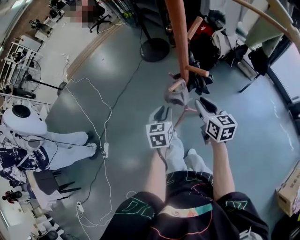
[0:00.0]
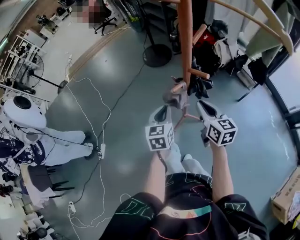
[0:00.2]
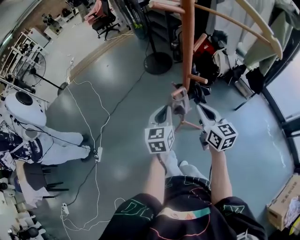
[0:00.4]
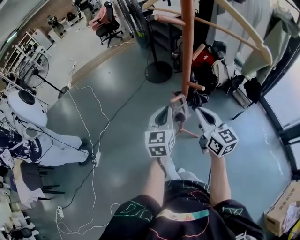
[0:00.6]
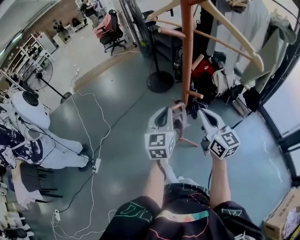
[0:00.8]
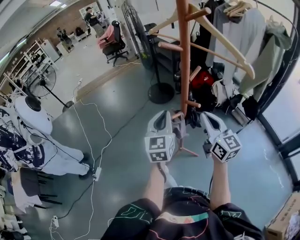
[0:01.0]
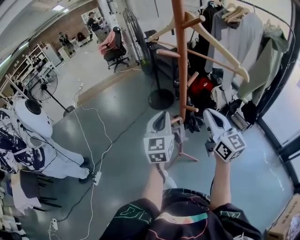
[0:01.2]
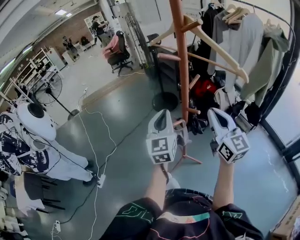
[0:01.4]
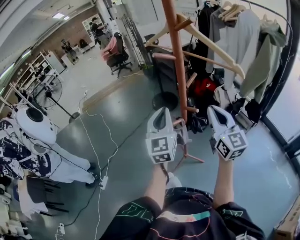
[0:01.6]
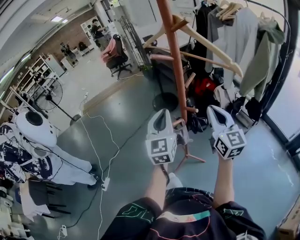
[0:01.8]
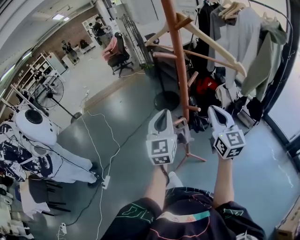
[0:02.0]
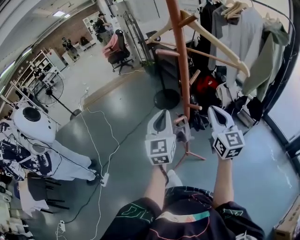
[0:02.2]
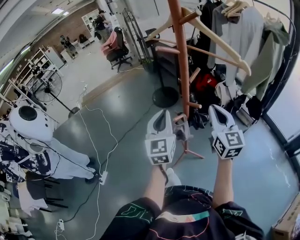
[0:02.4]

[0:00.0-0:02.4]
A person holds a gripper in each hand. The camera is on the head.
0.0 to 1.2 s: Both grippers travel together upward, some 25 cm. The left gripper tilts its fingers about 30 degrees upward, and closes, while the right gripper tilts its fingers some 30 degrees upward, and closes its fingers.
1.2 to 2.4 s: The grippers make only small movements.

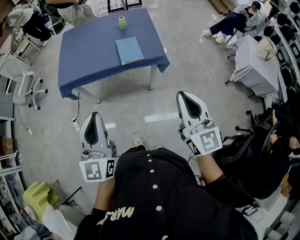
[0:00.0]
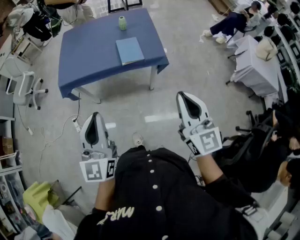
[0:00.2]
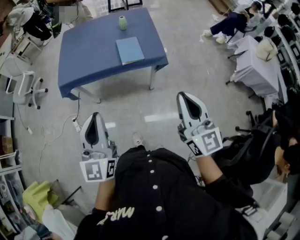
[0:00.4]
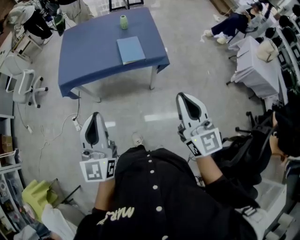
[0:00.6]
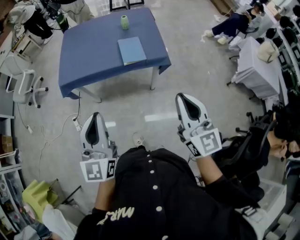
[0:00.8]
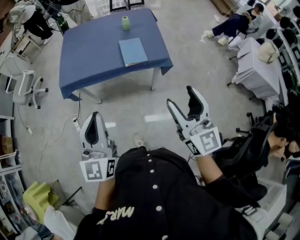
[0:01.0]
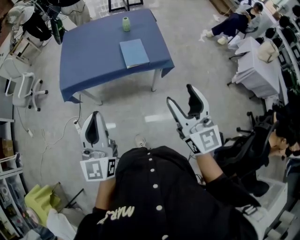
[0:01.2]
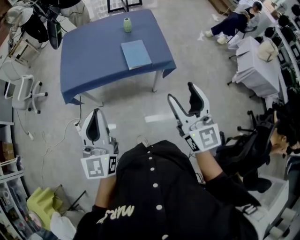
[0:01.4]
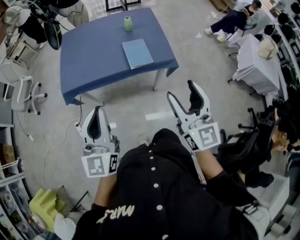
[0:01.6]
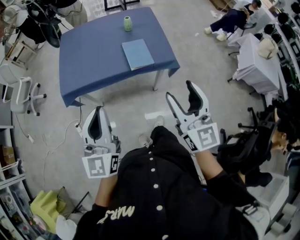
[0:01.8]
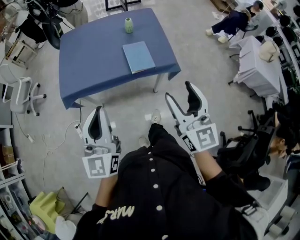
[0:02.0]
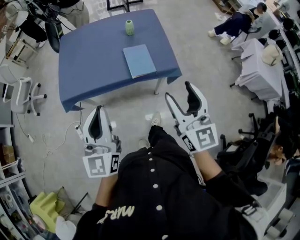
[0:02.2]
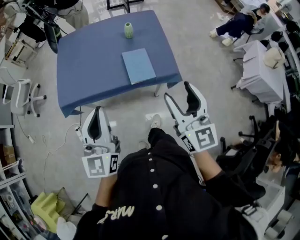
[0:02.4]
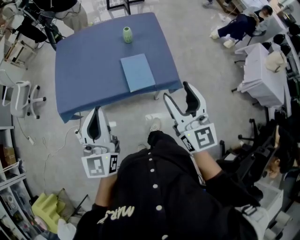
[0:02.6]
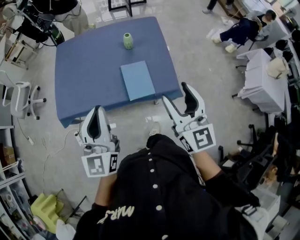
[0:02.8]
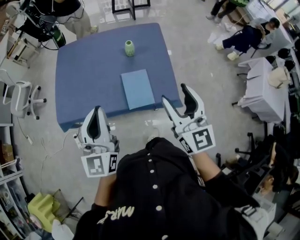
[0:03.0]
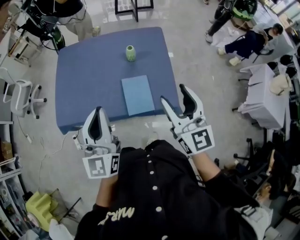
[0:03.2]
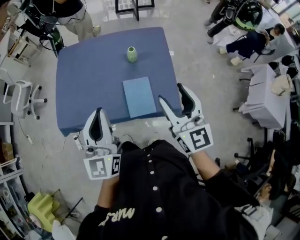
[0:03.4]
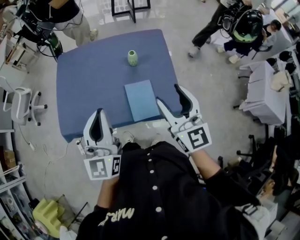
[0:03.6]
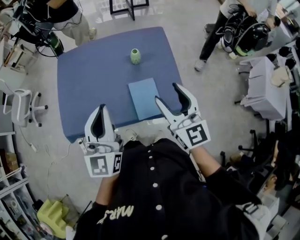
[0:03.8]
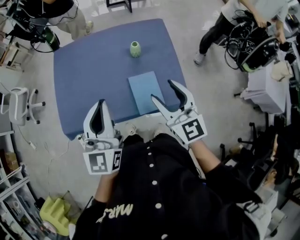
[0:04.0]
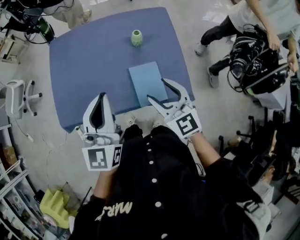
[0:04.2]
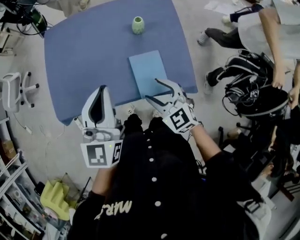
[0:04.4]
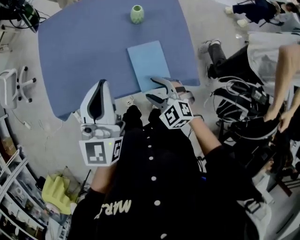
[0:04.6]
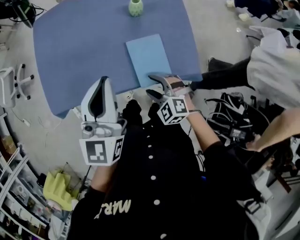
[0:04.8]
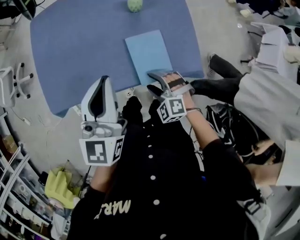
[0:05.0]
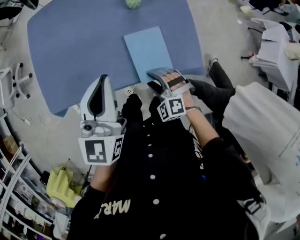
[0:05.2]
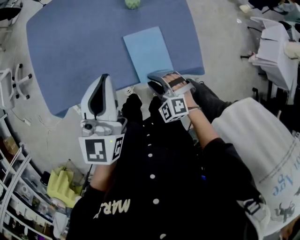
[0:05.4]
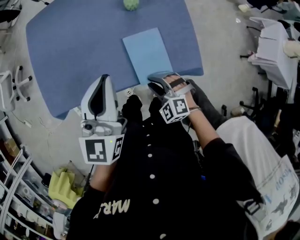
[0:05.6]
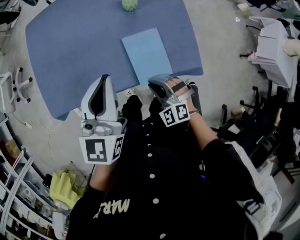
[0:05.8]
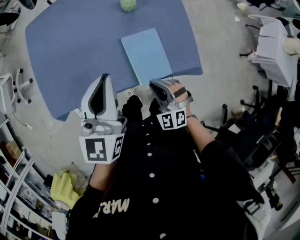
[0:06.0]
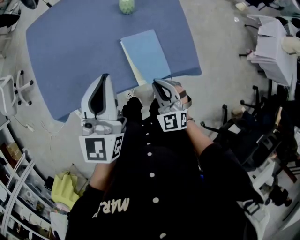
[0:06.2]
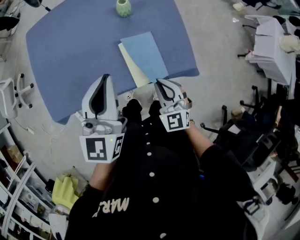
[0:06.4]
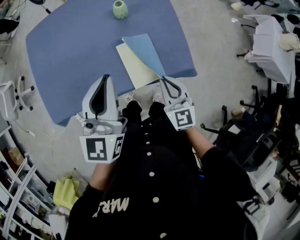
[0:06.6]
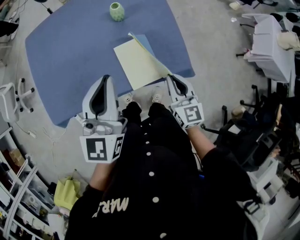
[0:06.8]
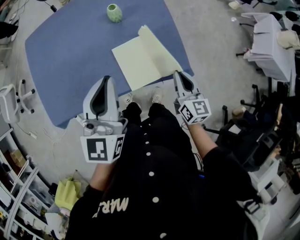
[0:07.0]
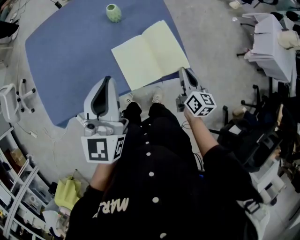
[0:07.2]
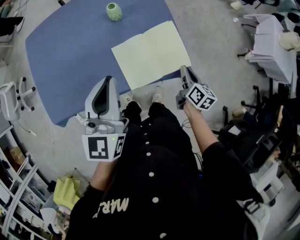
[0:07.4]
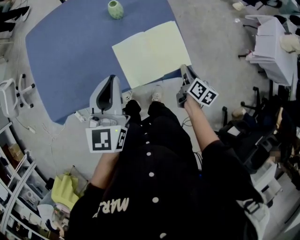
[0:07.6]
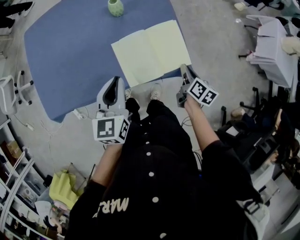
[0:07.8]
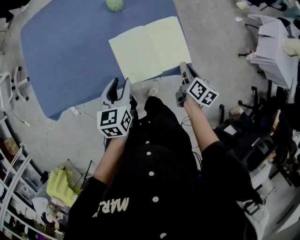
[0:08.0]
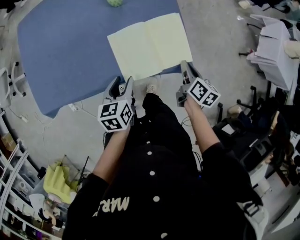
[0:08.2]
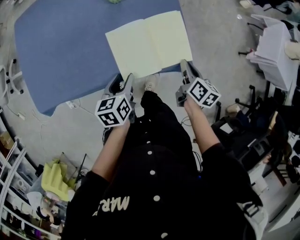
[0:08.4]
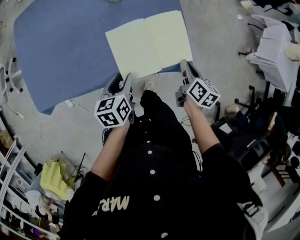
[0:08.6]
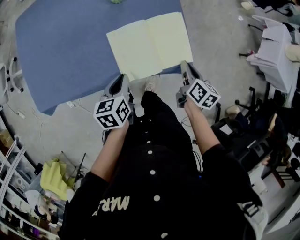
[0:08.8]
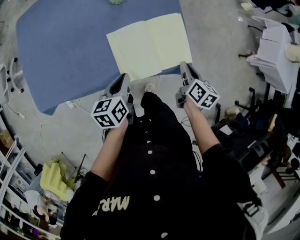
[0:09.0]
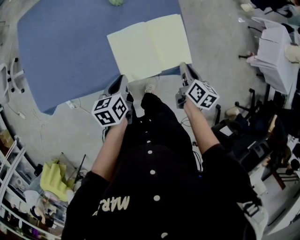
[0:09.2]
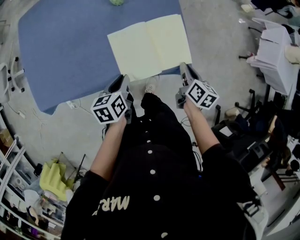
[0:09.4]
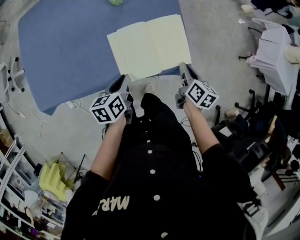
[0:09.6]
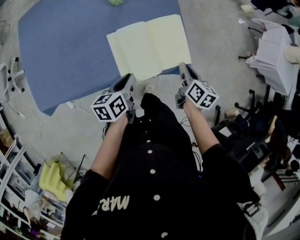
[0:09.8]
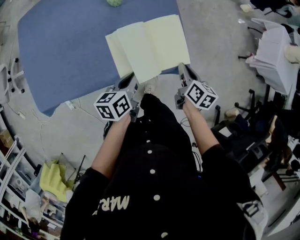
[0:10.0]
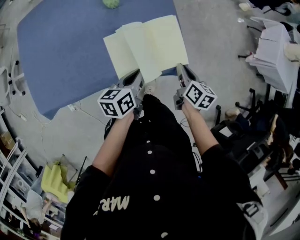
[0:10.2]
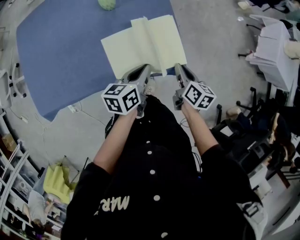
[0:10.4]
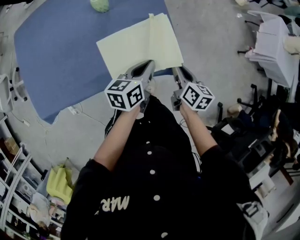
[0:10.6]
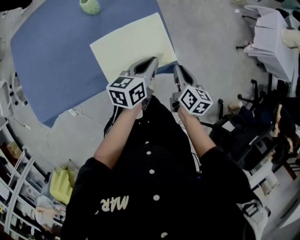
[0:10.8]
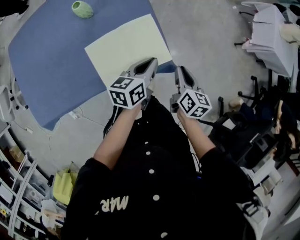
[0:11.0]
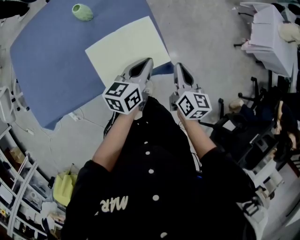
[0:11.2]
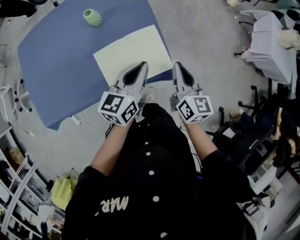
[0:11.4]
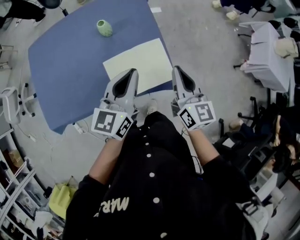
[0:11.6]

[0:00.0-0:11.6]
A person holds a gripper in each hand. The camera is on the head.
0.0 to 1.4 s: Both grippers move forward and to the left, about 10 cm. The right gripper opens its fingers.
1.4 to 2.8 s: The two grippers go approximately 30 cm forward.
2.8 to 4.4 s: The right gripper heads downward, forward and to the left, covering about 30 cm, and tips its fingers downward by approximately 30 degrees. The left gripper is displaced forward by roughly 20 cm.
4.4 to 5.8 s: The left gripper shifts roughly 10 cm downward. The right gripper shifts some 15 cm downward, rotates approximately 30 degrees, and closes its fingers.
5.8 to 7.2 s: The left gripper travels to the right by roughly 5 cm, while the right gripper is displaced to the right by about 25 cm, and twists approximately 80 degrees clockwise, seen from behind.
7.2 to 8.8 s: The right gripper is displaced downward by roughly 5 cm, while the left gripper heads downward, covering about 25 cm, angles its fingers downward, by roughly 40 degrees, and opens, then closes again.
8.8 to 10.2 s: The left gripper goes some 10 cm to the right, and turns by some 20 degrees.
10.2 to 11.6 s: The two grippers go about 20 cm upward. The right gripper changes its angle by about 40 degrees, while the left gripper rotates approximately 40 degrees.

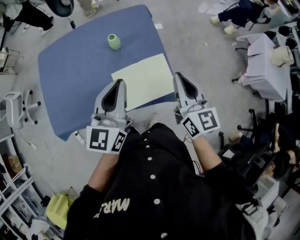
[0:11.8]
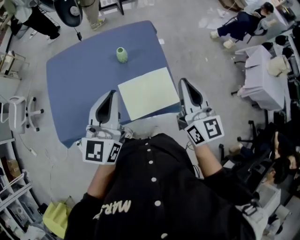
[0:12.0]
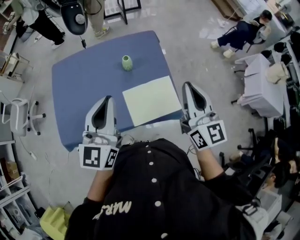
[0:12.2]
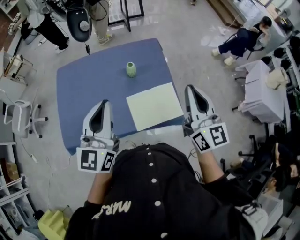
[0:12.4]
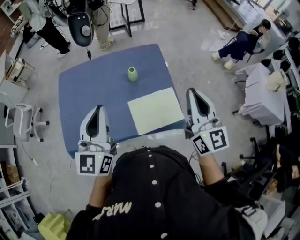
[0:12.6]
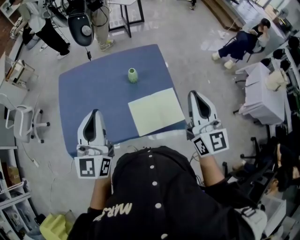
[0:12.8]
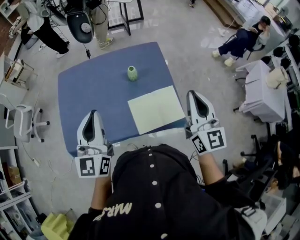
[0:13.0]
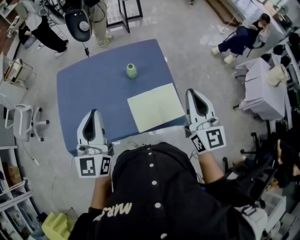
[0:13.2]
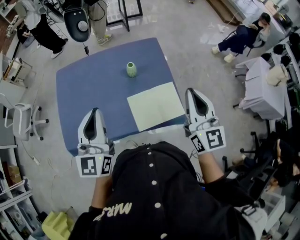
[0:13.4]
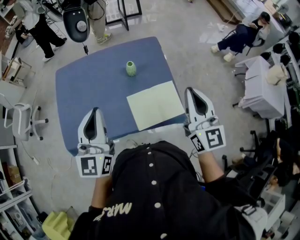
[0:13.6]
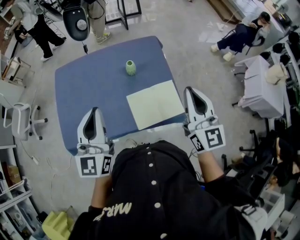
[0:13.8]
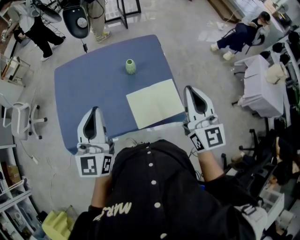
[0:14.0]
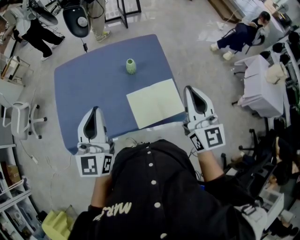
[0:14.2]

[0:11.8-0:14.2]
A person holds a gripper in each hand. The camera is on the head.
11.8 to 13.0 s: The left gripper heads to the left and upward, covering approximately 20 cm. The right gripper heads upward, covering approximately 10 cm.
13.0 to 14.2 s: The grippers stay close to where they were, moving slightly.

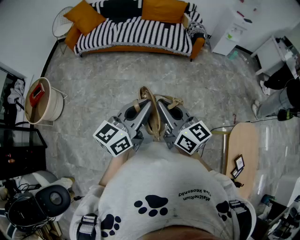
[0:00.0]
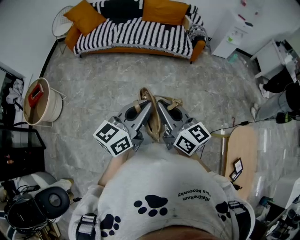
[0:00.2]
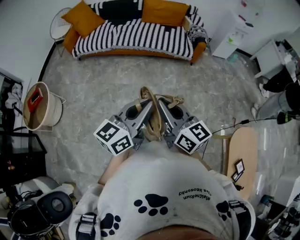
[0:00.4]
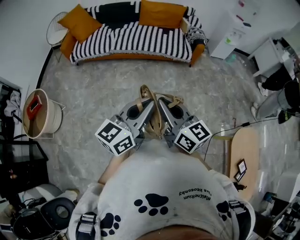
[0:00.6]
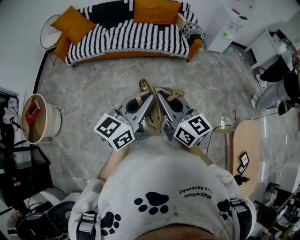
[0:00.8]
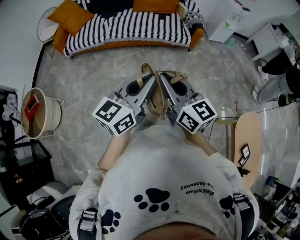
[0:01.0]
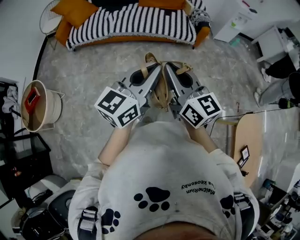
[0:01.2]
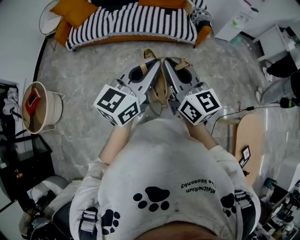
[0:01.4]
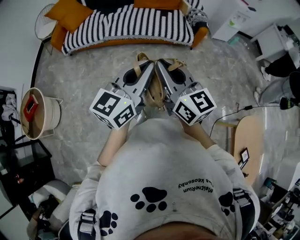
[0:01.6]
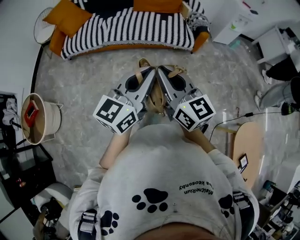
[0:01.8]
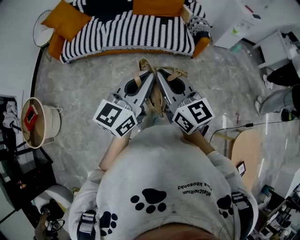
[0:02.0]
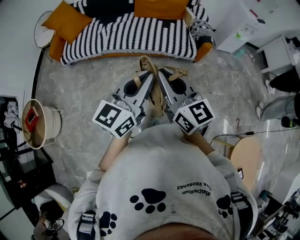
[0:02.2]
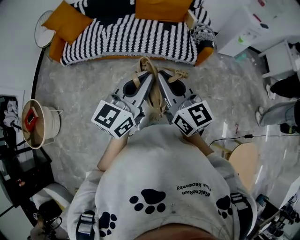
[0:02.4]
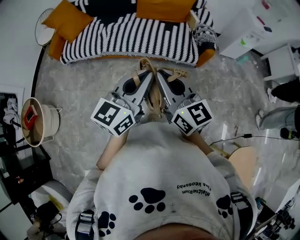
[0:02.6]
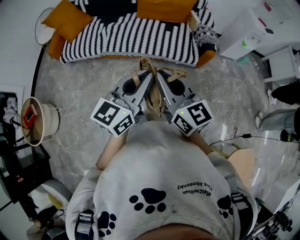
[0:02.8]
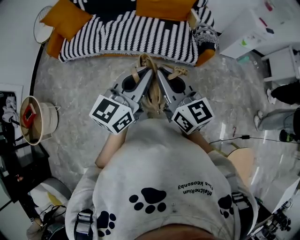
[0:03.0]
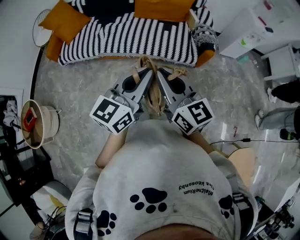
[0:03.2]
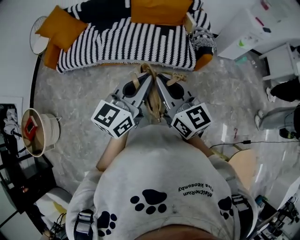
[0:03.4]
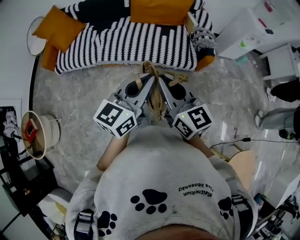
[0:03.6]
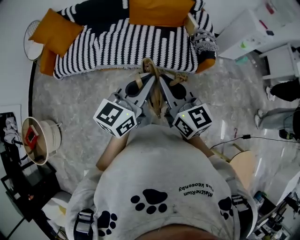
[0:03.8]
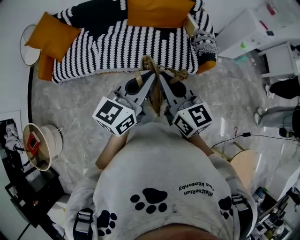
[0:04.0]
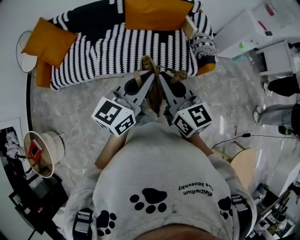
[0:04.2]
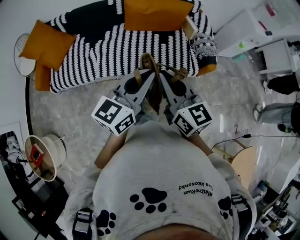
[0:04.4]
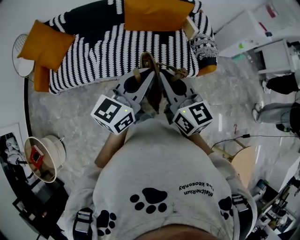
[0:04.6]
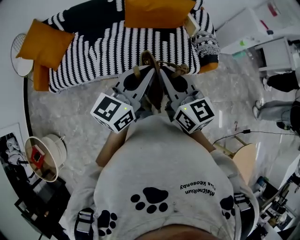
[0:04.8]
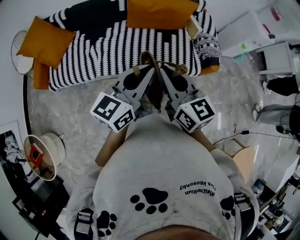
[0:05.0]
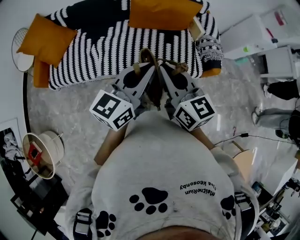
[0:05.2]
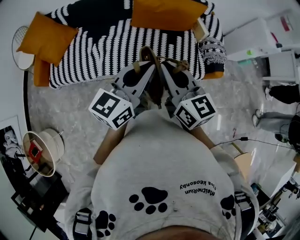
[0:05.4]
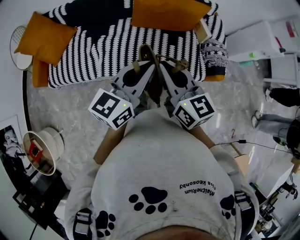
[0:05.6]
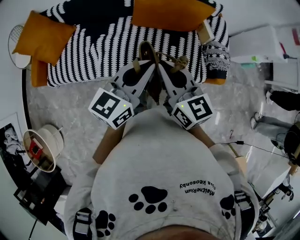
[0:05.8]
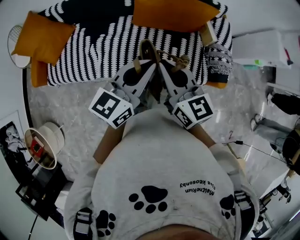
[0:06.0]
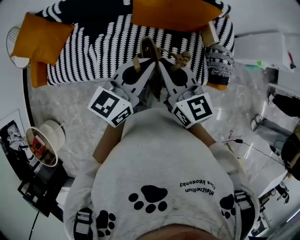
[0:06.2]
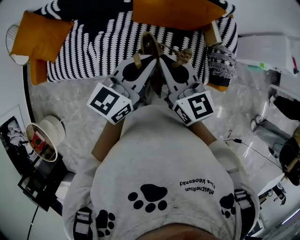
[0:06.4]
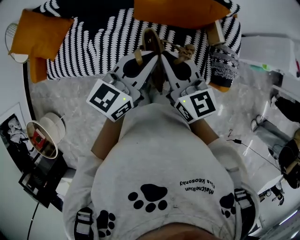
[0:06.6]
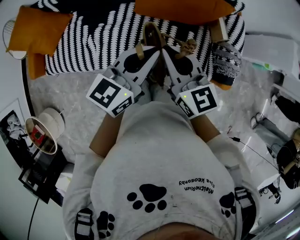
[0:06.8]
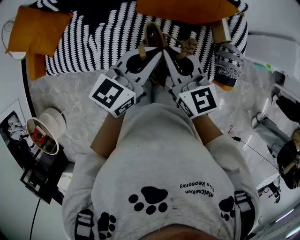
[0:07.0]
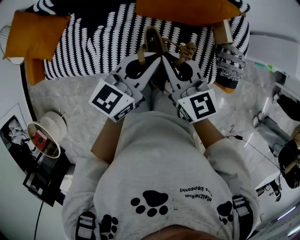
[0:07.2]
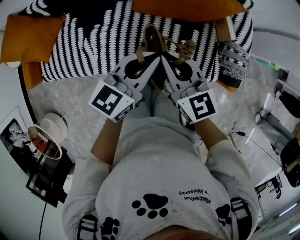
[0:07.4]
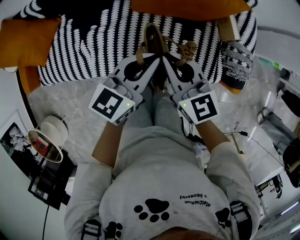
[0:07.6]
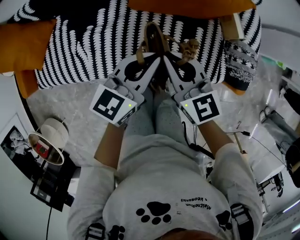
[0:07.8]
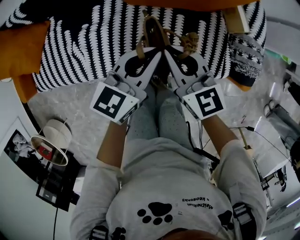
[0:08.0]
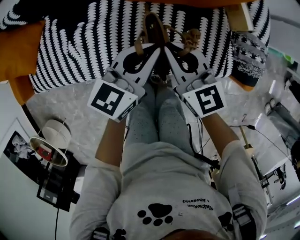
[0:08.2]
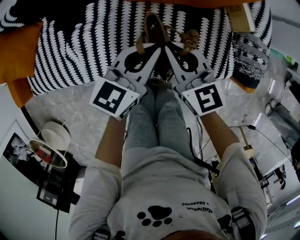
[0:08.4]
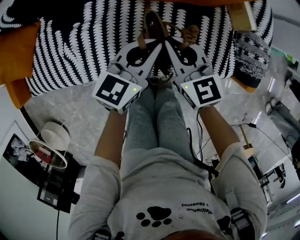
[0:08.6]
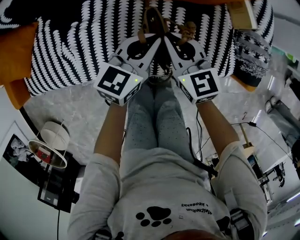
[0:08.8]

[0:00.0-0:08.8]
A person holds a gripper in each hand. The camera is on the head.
0.0 to 1.4 s: Both grippers move forward and to the left, approximately 25 cm.
1.4 to 3.0 s: Both grippers travel together forward, some 35 cm.
3.0 to 4.4 s: The grippers both shift forward by about 30 cm.
4.4 to 5.8 s: The two grippers go roughly 20 cm forward.
5.8 to 7.4 s: The grippers both shift forward and downward by approximately 25 cm.
7.4 to 8.8 s: Both grippers travel together downward, approximately 25 cm.
